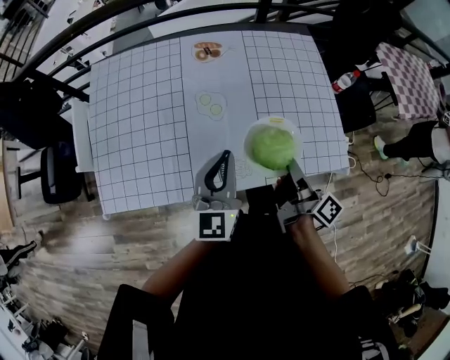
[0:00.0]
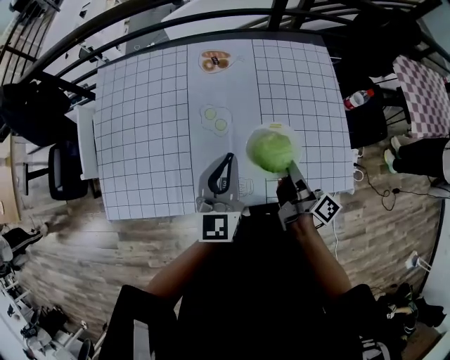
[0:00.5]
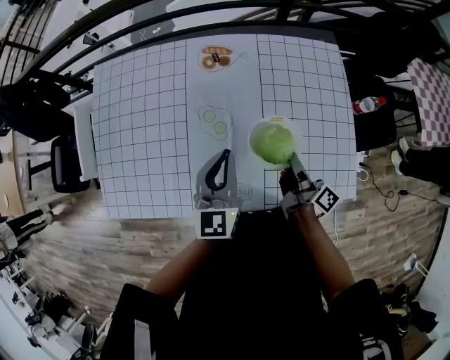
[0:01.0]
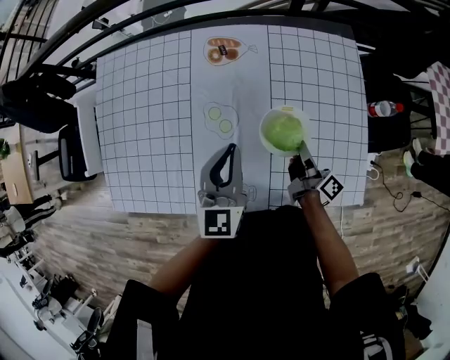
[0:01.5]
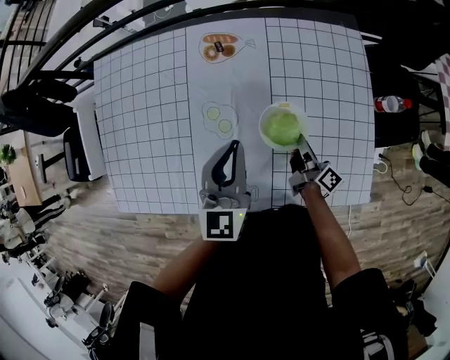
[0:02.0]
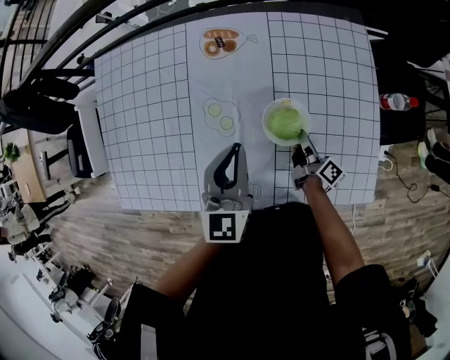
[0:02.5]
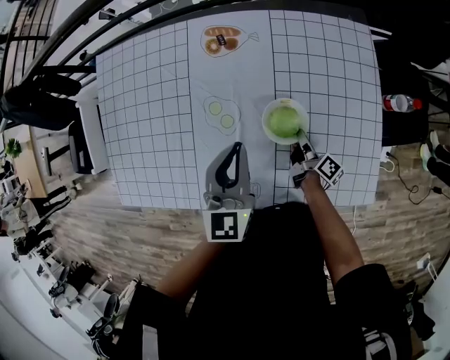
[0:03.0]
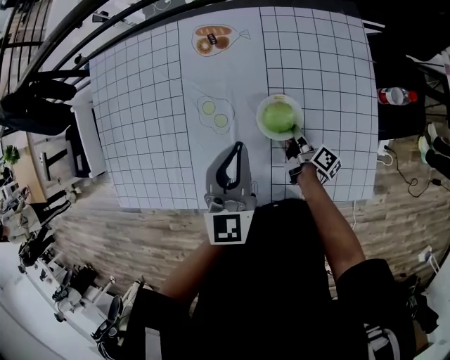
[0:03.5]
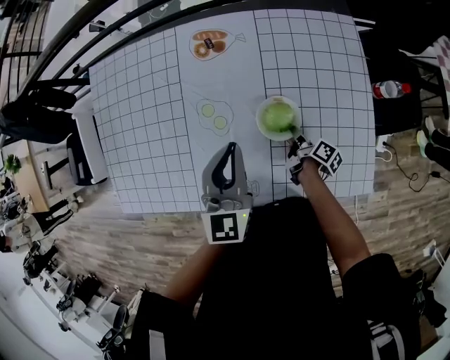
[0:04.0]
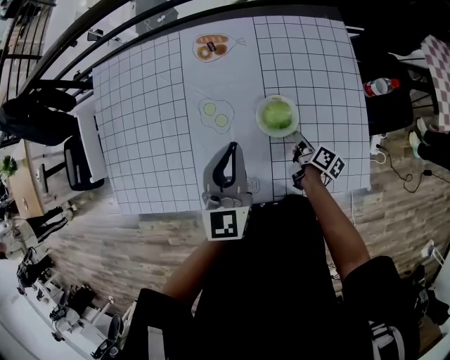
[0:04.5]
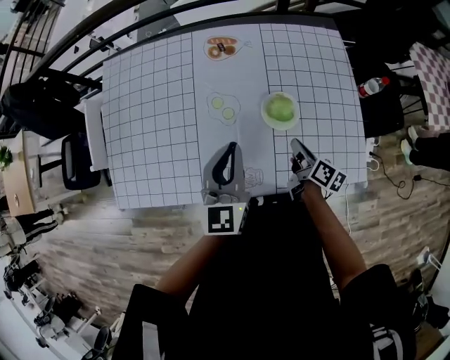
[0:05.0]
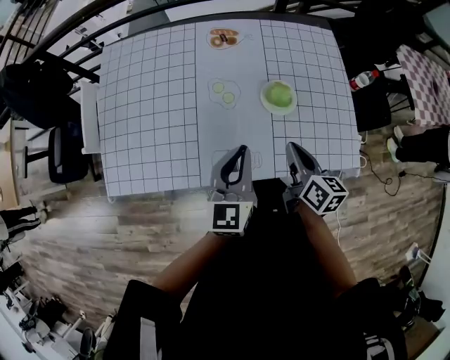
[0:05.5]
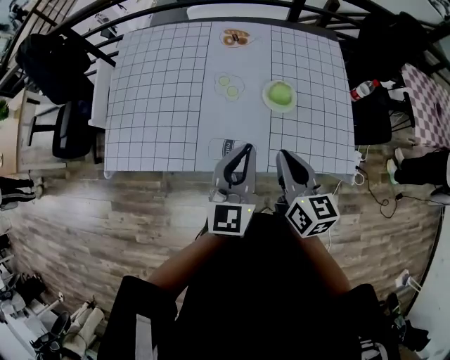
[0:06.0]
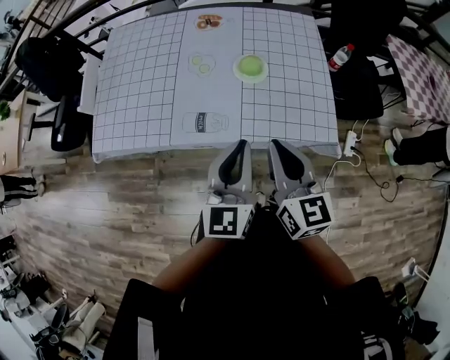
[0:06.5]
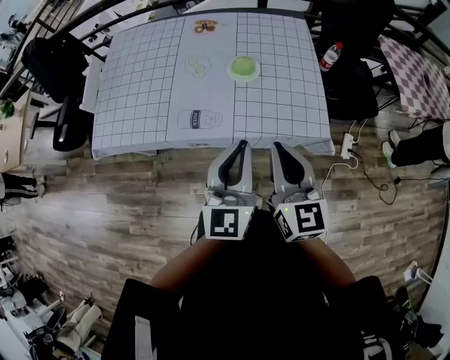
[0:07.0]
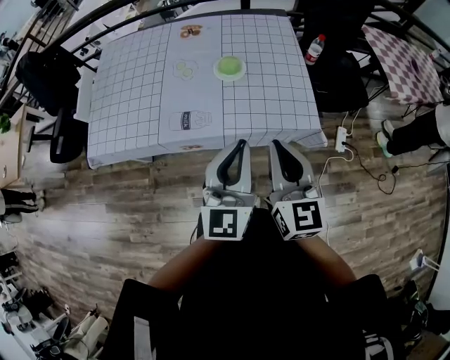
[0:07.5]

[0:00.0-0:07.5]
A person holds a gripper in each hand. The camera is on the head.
0:00.0 to 0:02.0: The right gripper travels forward and downward by roughly 30 cm, while the left gripper goes approximately 20 cm forward and to the right.
0:02.0 to 0:04.0: The right gripper goes approximately 10 cm downward, and rotates approximately 30 degrees.
0:04.0 to 0:05.5: The left gripper travels backward and to the left by about 20 cm. The right gripper shifts approximately 30 cm upward, backward and to the left, and rolls counterclockwise, seen from behind, by about 50 degrees.
0:05.5 to 0:07.5: The right gripper heads backward, upward and to the right, covering some 30 cm, and turns by about 40 degrees; the left gripper shifts approximately 30 cm backward and to the right.

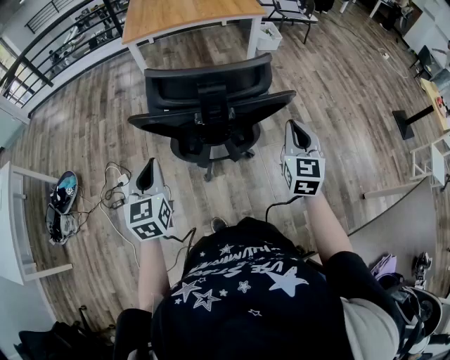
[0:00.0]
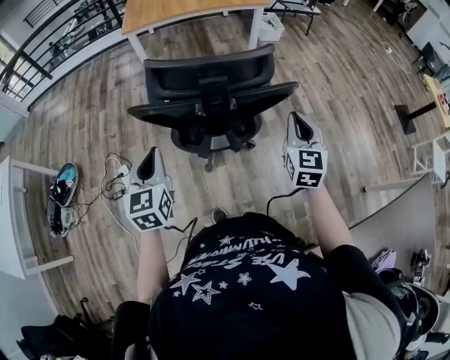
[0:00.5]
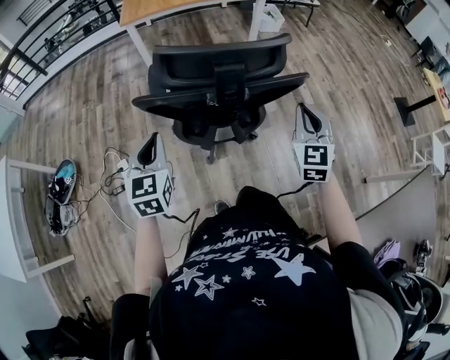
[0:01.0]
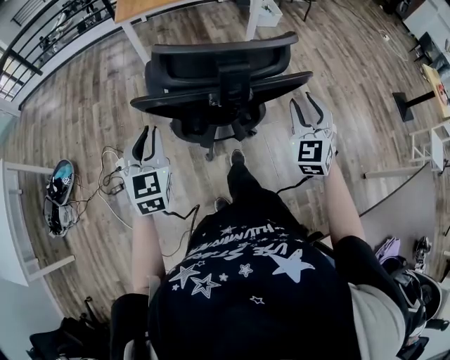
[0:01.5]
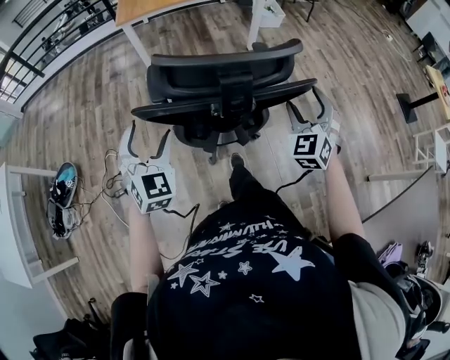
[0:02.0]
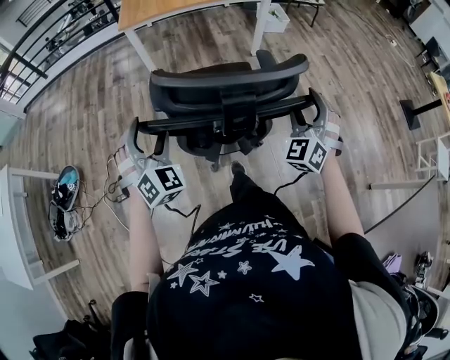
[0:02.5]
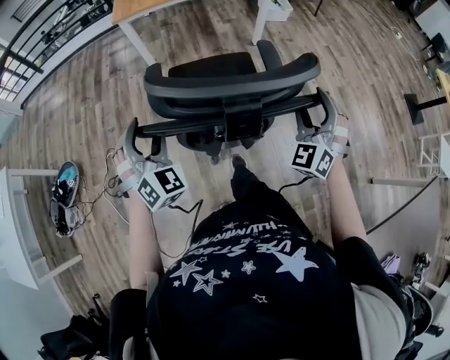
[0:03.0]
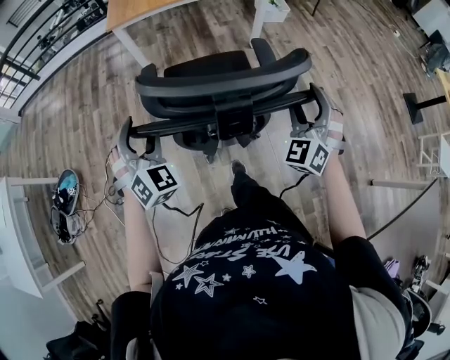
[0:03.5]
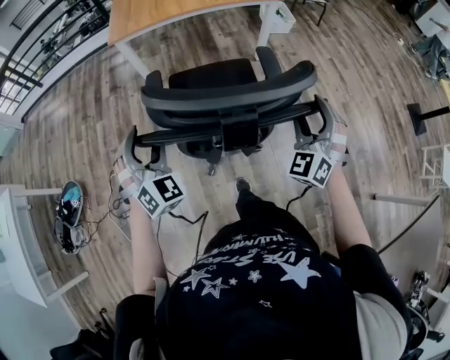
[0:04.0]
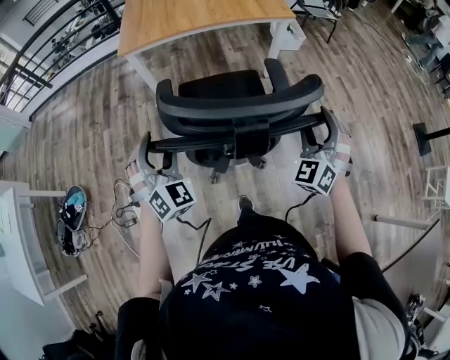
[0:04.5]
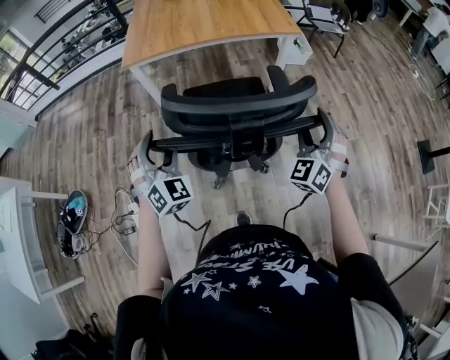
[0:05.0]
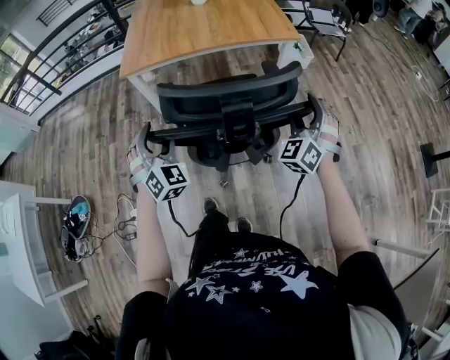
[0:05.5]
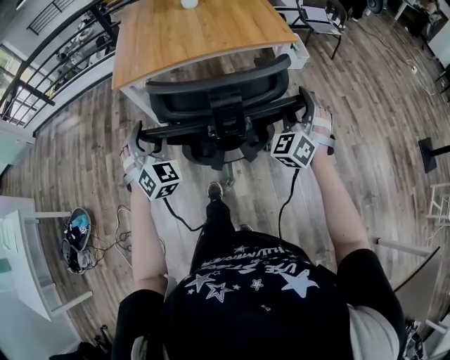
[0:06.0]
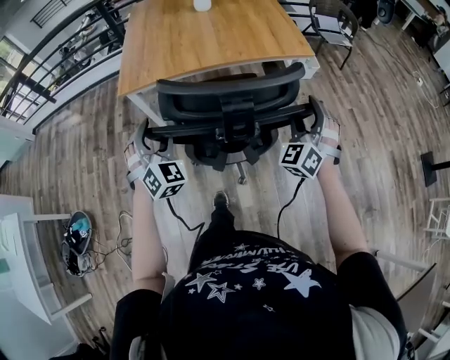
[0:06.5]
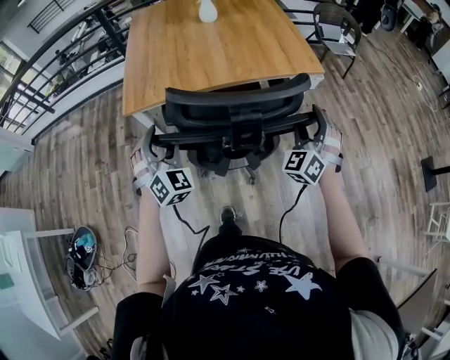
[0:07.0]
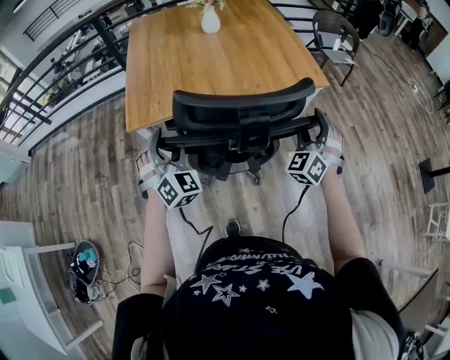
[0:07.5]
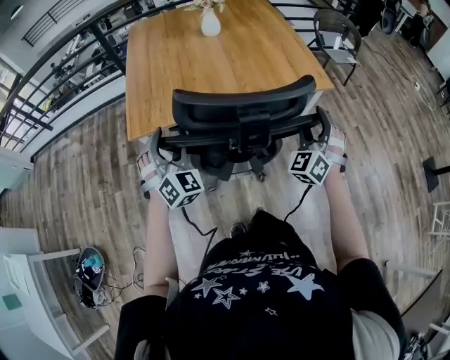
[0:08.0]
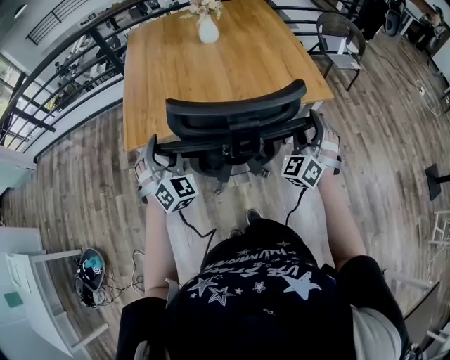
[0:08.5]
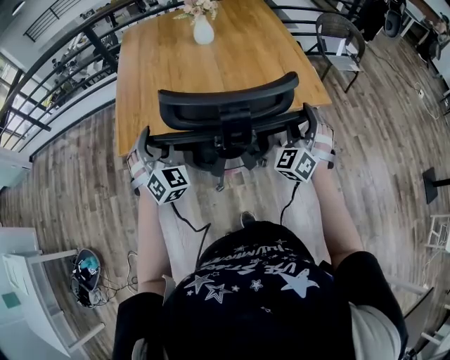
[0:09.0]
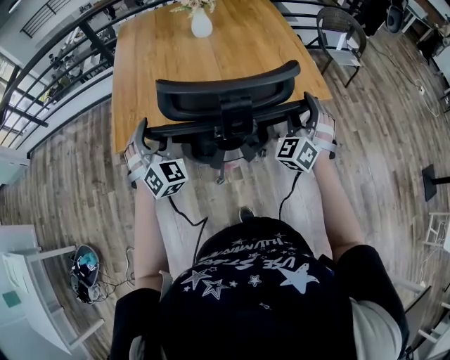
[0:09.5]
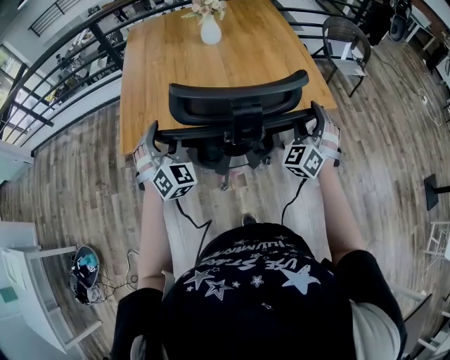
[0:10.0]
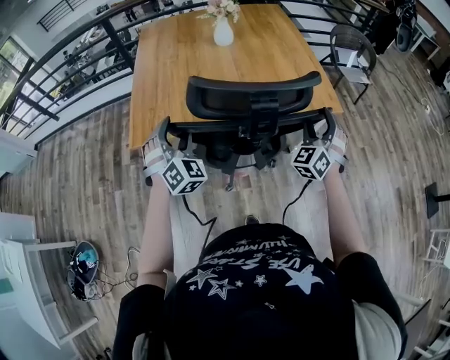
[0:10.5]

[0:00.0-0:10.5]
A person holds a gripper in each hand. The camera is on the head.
0:00.0 to 0:02.0: Both grippers move forward, roughly 10 cm. The right gripper rotates roughly 40 degrees, and opens its fingers. The left gripper rotates roughly 40 degrees, and opens up.
0:02.0 to 0:04.0: Both grippers travel together forward, some 20 cm.
0:04.0 to 0:06.5: Both grippers move forward, approximately 35 cm.
0:06.5 to 0:08.5: Both grippers travel together forward, roughly 20 cm.
0:08.5 to 0:10.5: Both grippers travel together forward, about 10 cm.

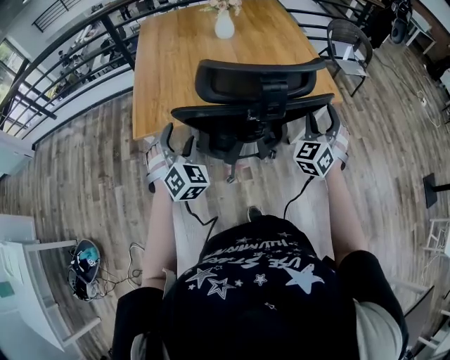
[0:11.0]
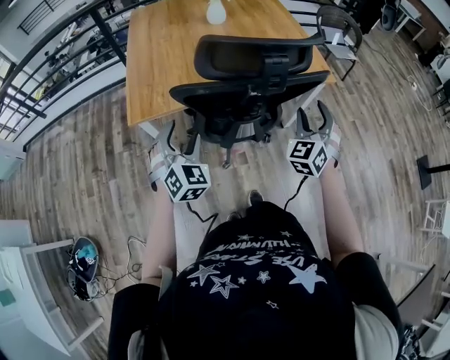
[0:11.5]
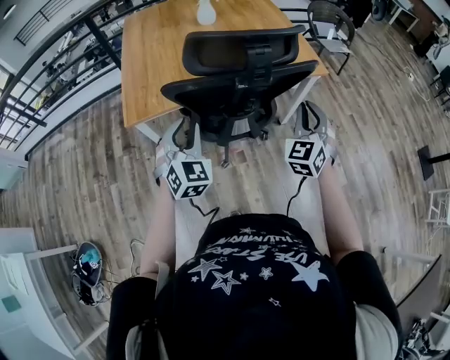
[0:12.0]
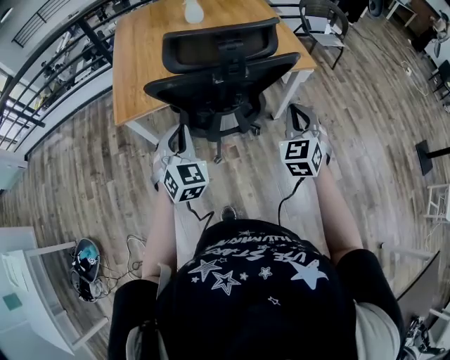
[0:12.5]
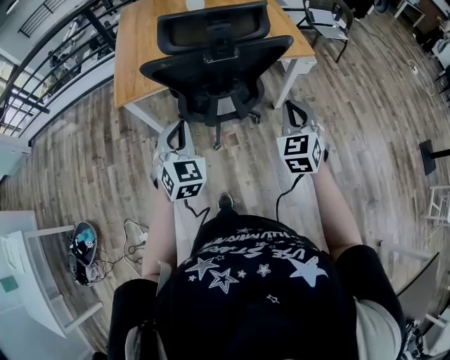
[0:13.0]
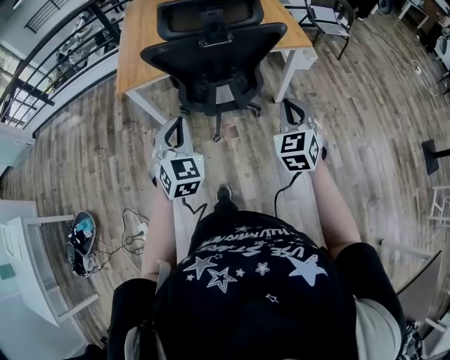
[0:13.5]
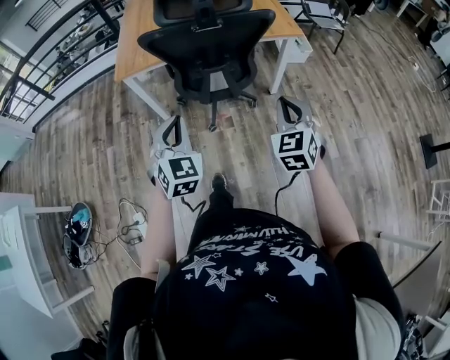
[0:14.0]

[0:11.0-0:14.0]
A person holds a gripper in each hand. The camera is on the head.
0:11.0 to 0:12.5: The left gripper shifts roughly 15 cm to the right and backward, and closes up. The right gripper heads backward, covering about 15 cm, and closes.
0:12.5 to 0:14.0: The grippers both shift backward by approximately 20 cm.

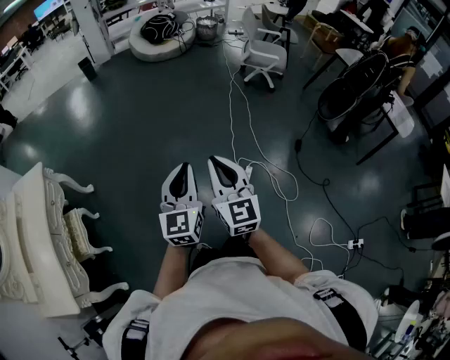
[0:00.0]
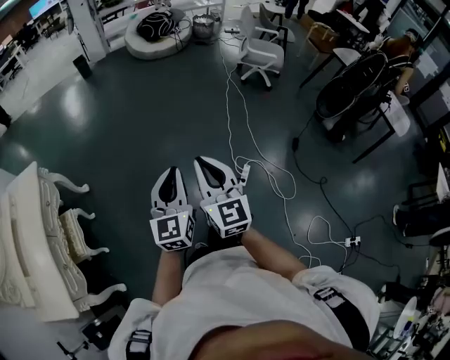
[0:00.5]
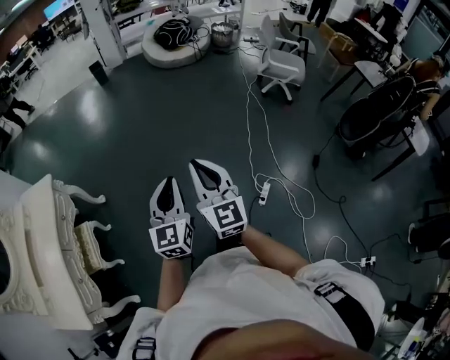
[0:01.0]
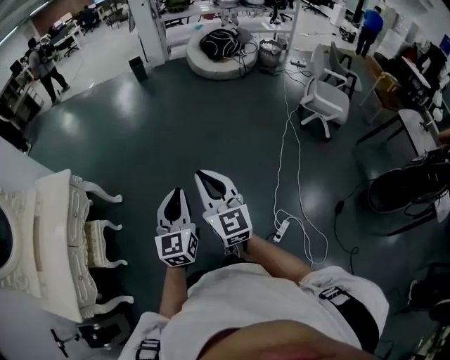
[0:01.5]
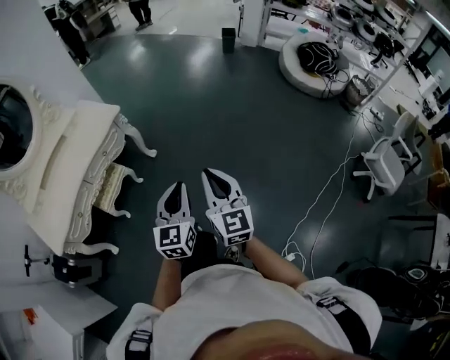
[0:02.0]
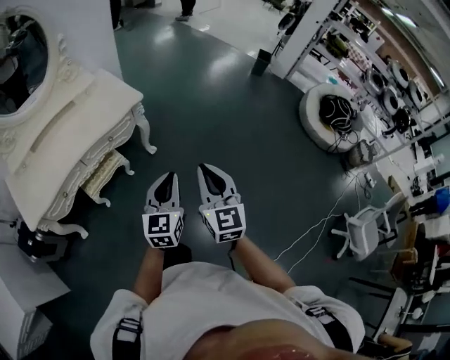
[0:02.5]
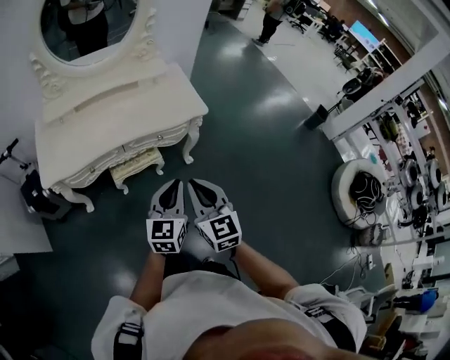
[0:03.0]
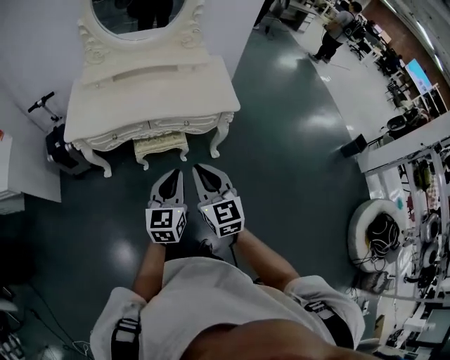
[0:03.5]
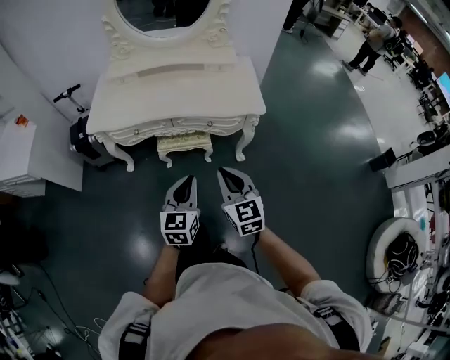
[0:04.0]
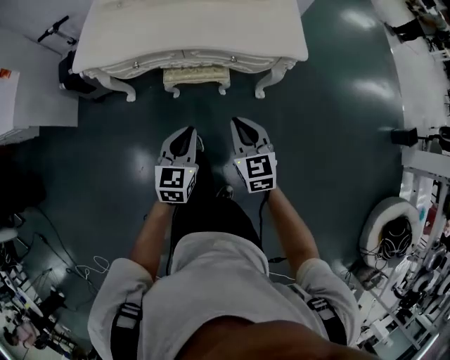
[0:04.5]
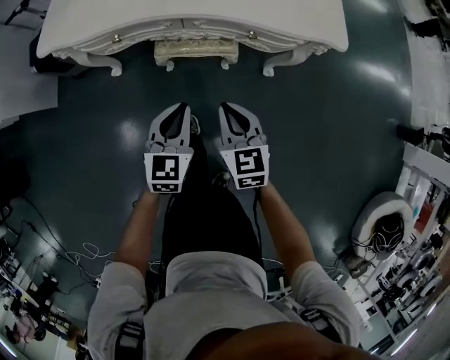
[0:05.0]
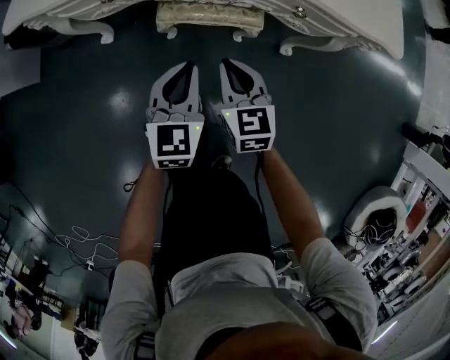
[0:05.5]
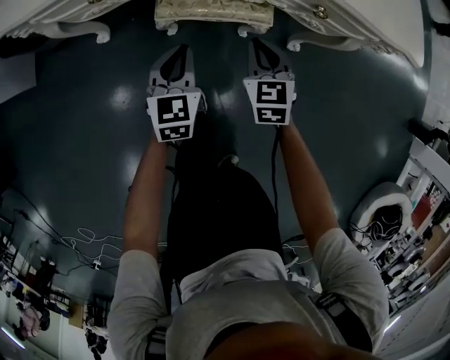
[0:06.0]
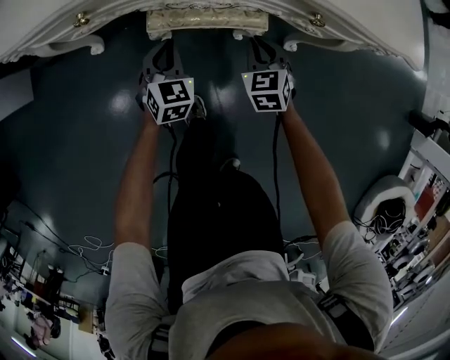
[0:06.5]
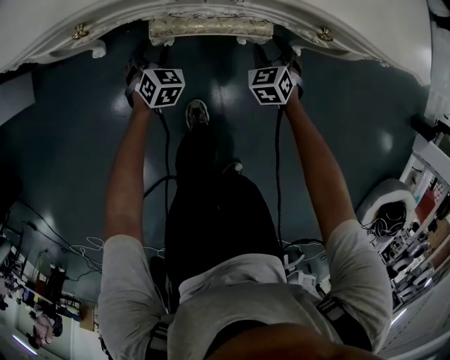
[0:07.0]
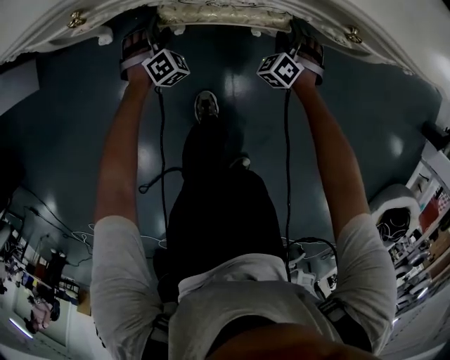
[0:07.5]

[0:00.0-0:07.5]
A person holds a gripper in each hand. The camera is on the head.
0:00.0 to 0:02.0: The left gripper moves approximately 40 cm, and rotates some 50 degrees. Meanwhile the right gripper ends up approximately 40 cm from where it was, and rotates some 50 degrees.
0:02.0 to 0:04.0: The right gripper shifts by approximately 35 cm, and turns by approximately 70 degrees, while the left gripper changes place by about 30 cm, and swivels about 60 degrees.
0:04.0 to 0:05.5: Both grippers move downward and forward, approximately 40 cm.
0:05.5 to 0:07.5: The right gripper travels downward, forward and to the right by roughly 35 cm, twists approximately 50 degrees counterclockwise, seen from behind, and opens up; the left gripper is displaced downward and forward by approximately 35 cm, rolls clockwise, seen from behind, by some 60 degrees, and opens.
